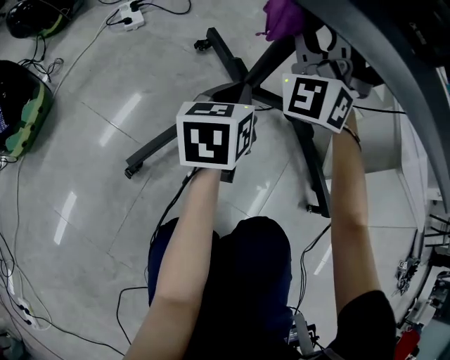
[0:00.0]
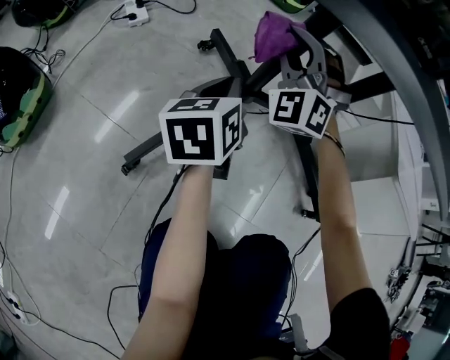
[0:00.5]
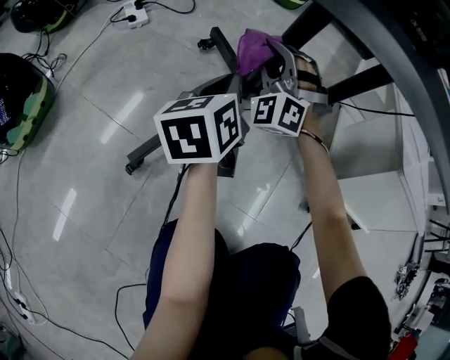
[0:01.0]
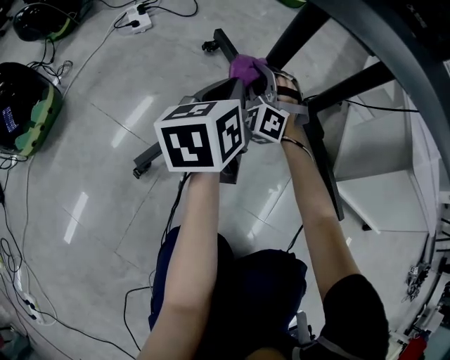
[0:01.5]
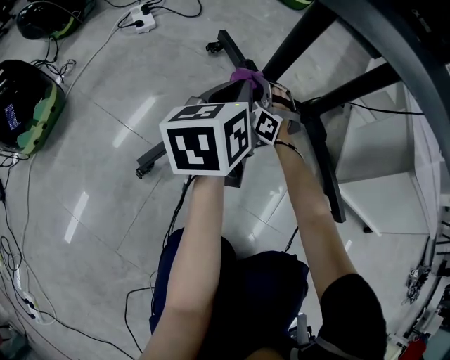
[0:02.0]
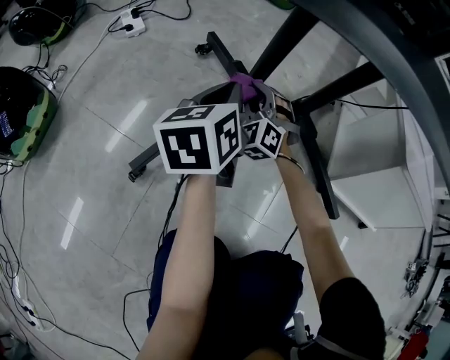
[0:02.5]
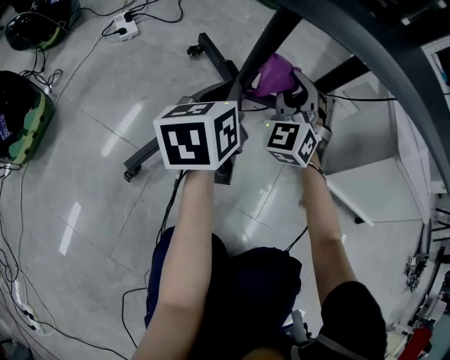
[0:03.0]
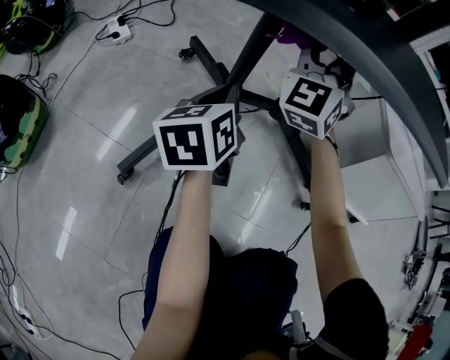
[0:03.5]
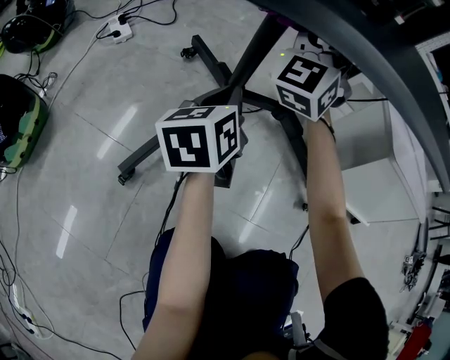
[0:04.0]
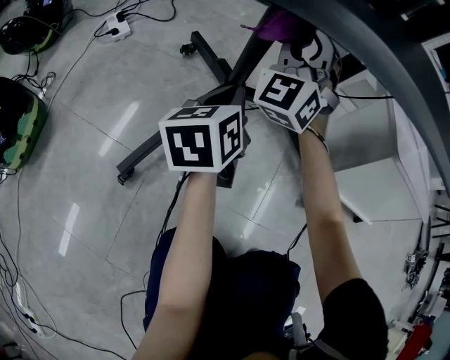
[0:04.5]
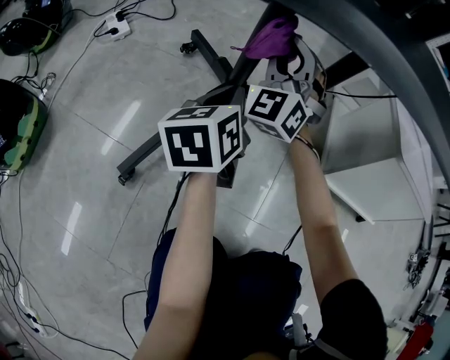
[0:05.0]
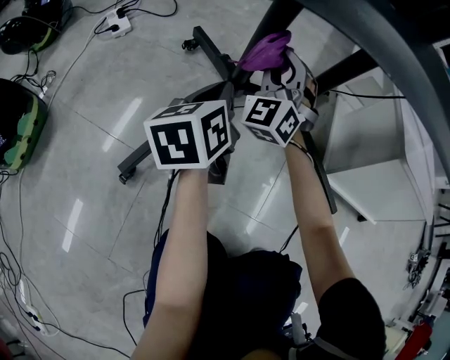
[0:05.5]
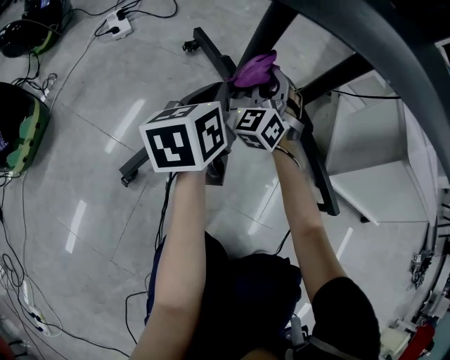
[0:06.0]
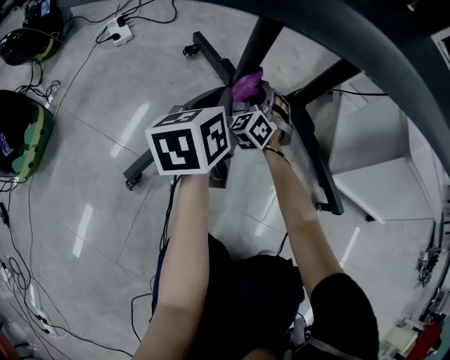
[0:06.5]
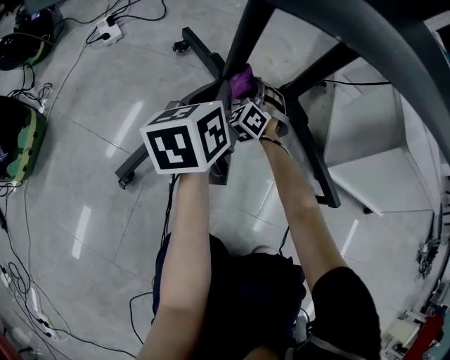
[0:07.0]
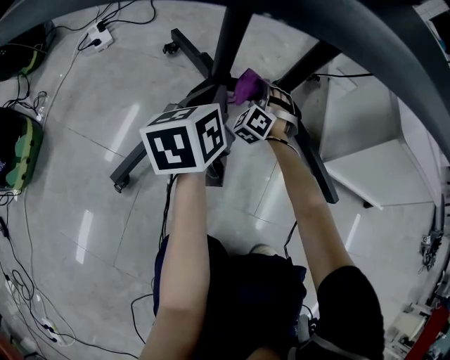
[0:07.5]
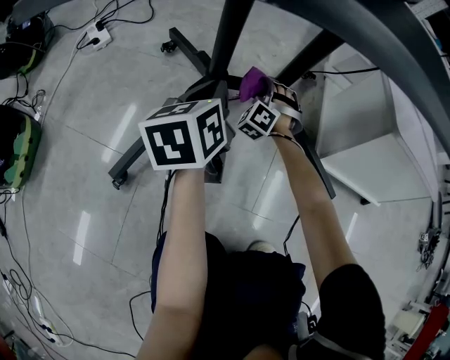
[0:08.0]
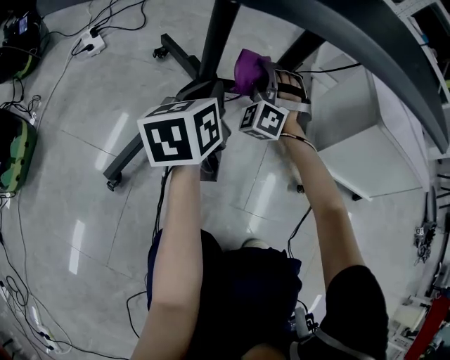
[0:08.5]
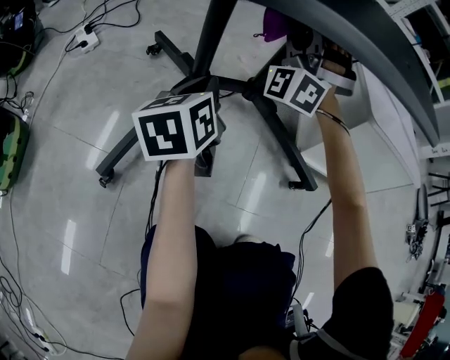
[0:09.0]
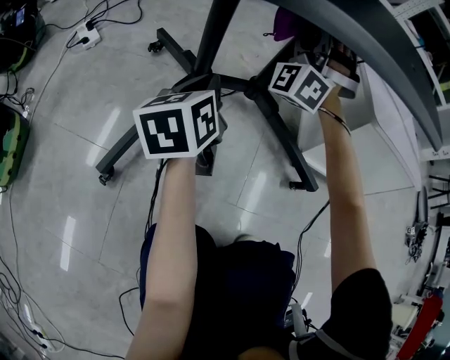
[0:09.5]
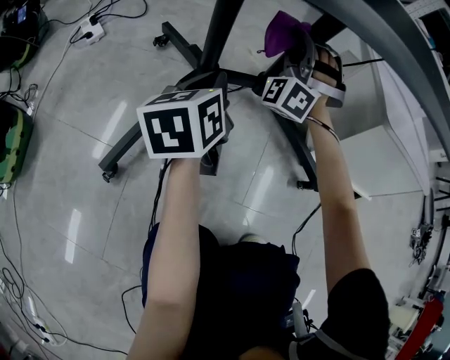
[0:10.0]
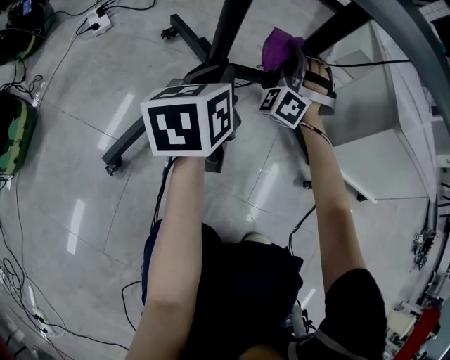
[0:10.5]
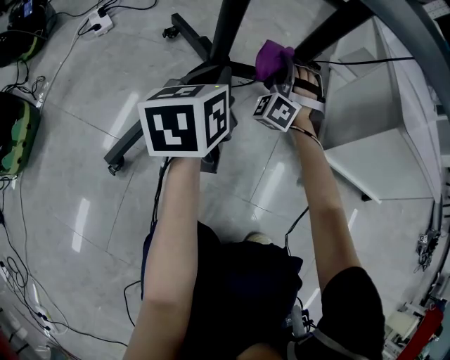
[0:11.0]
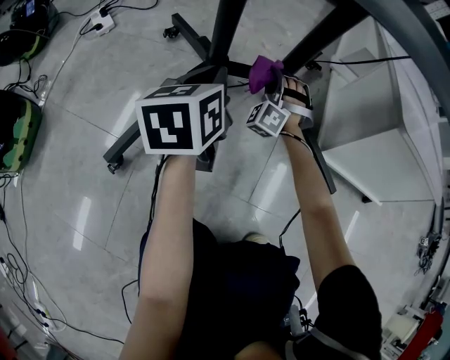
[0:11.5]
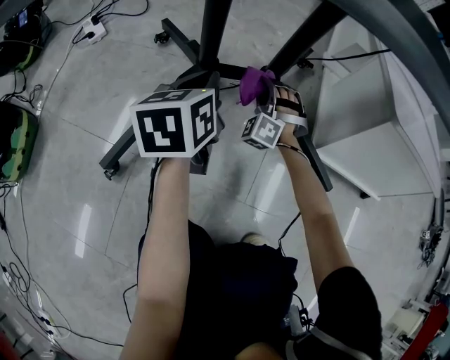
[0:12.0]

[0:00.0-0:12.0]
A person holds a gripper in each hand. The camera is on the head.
0:00.0 to 0:02.0: The right gripper moves downward, roughly 30 cm, and angles its fingers downward, by about 30 degrees.
0:02.0 to 0:04.0: The right gripper shifts approximately 35 cm upward, and angles its fingers upward, by some 40 degrees.
0:04.0 to 0:06.0: The right gripper moves downward, approximately 25 cm, and swivels roughly 30 degrees.
0:06.0 to 0:08.0: The right gripper shifts some 15 cm downward and to the right, and swivels some 30 degrees. The left gripper goes some 5 cm to the right.
0:08.0 to 0:10.0: The right gripper moves upward, some 25 cm, and angles its fingers upward, by some 30 degrees.
0:10.0 to 0:12.0: The right gripper moves downward, some 20 cm, and swivels about 20 degrees.

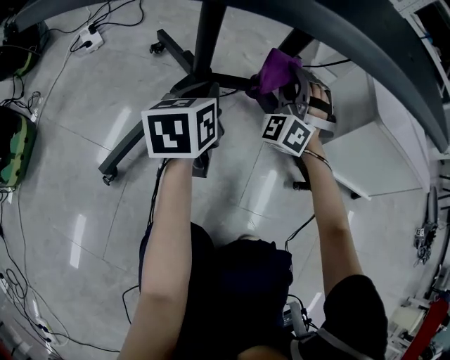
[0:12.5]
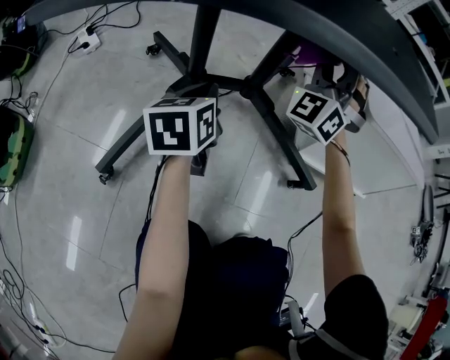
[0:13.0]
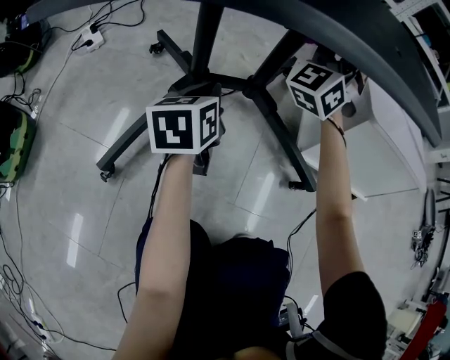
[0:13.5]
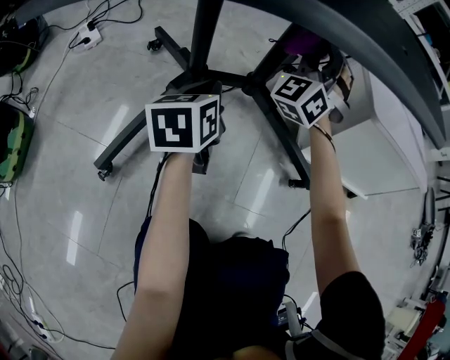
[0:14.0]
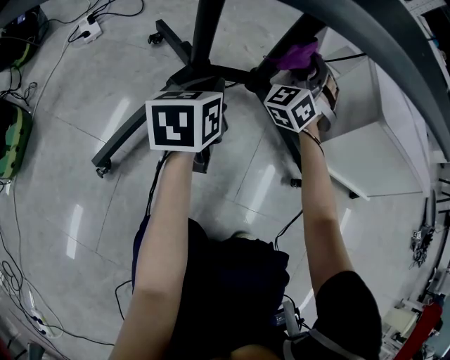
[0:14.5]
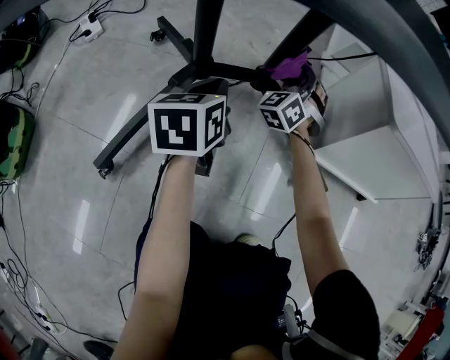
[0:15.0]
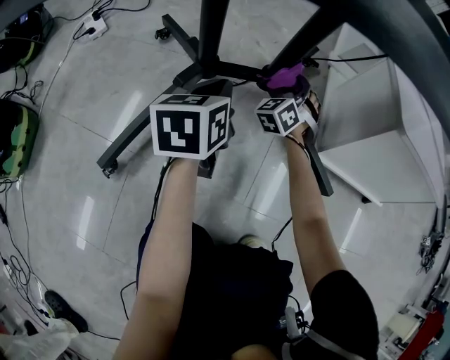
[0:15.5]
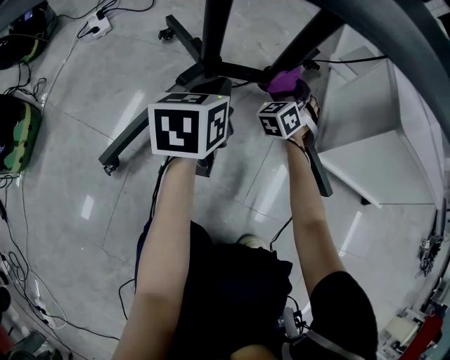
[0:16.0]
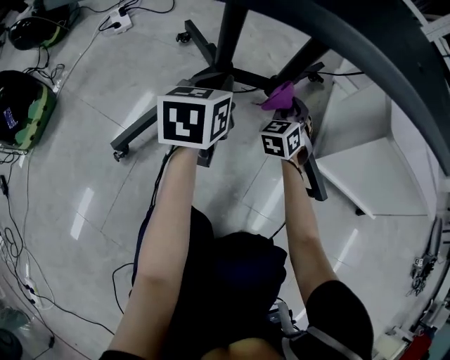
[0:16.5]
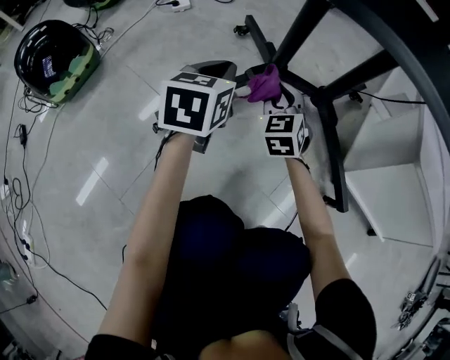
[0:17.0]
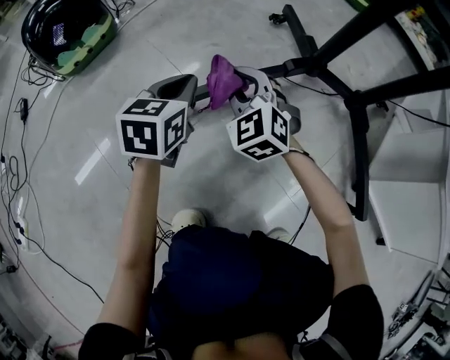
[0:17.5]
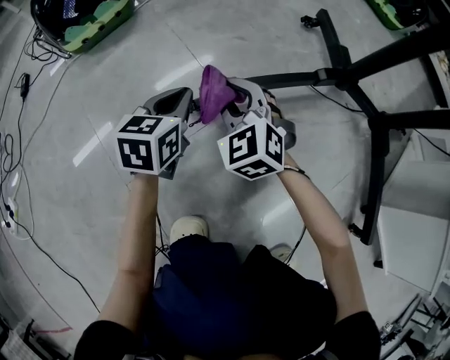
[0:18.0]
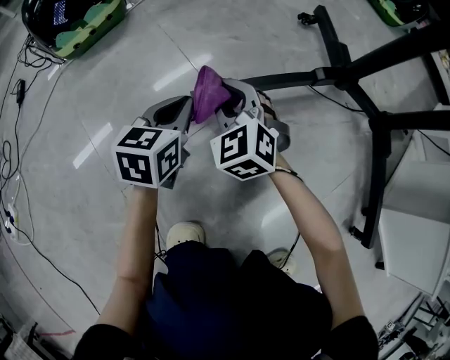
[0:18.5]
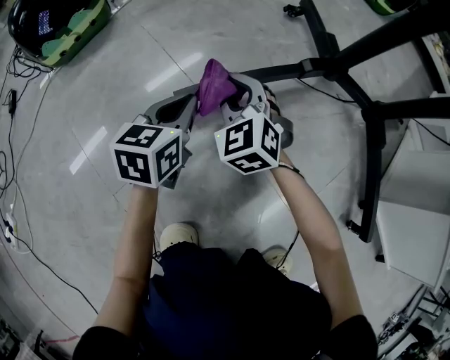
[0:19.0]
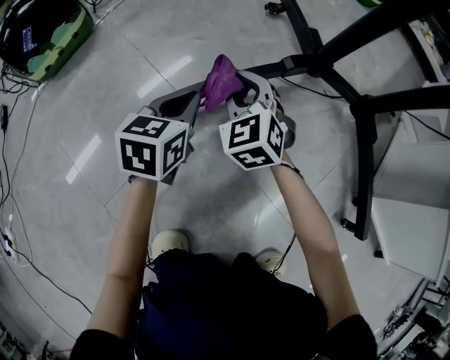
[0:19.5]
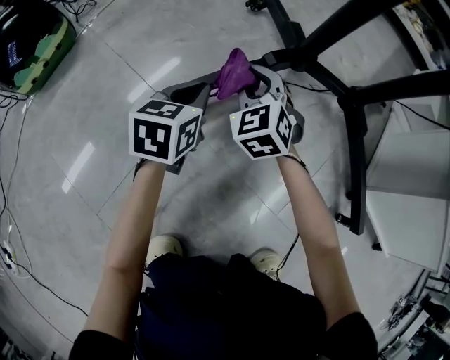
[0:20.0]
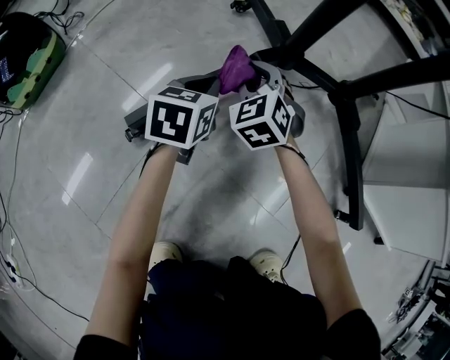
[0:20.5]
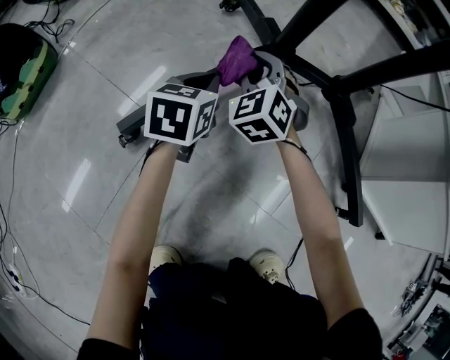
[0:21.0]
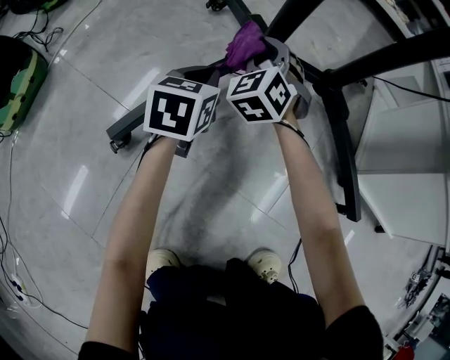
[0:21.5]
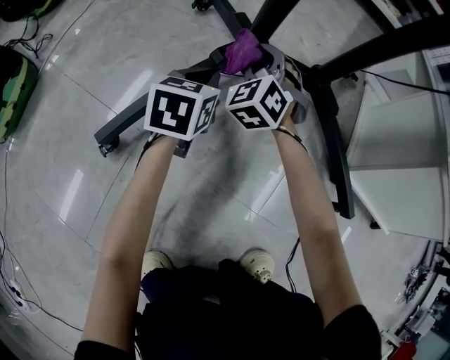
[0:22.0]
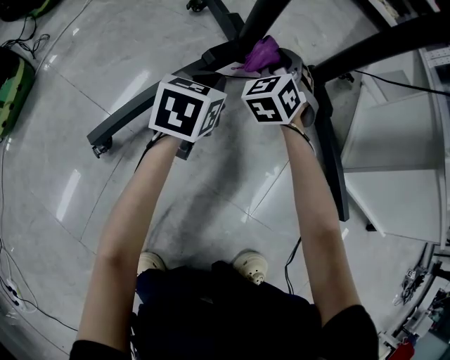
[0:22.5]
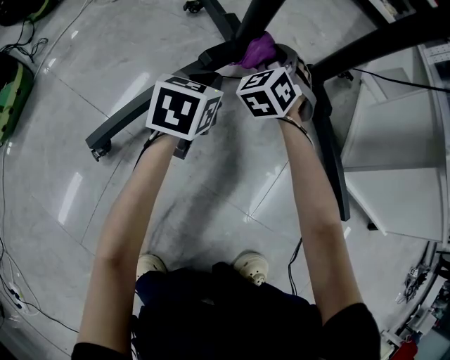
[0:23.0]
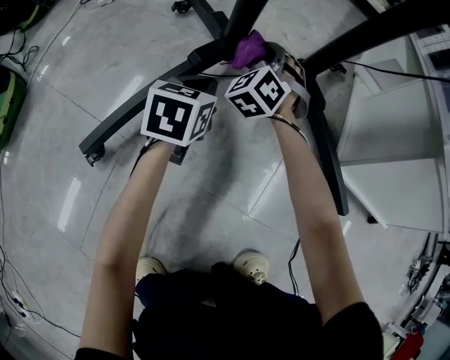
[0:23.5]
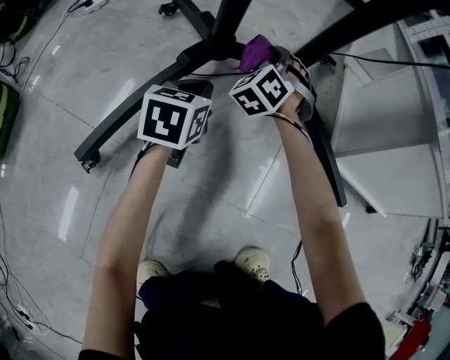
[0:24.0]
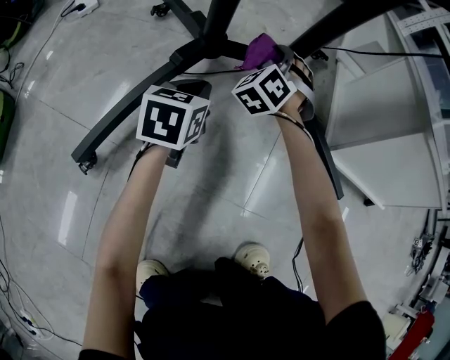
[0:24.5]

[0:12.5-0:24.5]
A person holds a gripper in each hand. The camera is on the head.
0:12.5 to 0:14.5: The right gripper moves forward, approximately 5 cm, reaches approximately 15 cm upward, then returns, and changes its angle by about 20 degrees.
0:14.5 to 0:16.5: The right gripper moves downward and backward, about 15 cm, and swivels approximately 30 degrees.
0:16.5 to 0:18.5: The right gripper changes place by approximately 50 cm, and rotates about 60 degrees. Meanwhile the left gripper ends up some 40 cm from where it was, and turns by about 20 degrees.
0:18.5 to 0:20.5: The grippers both shift to the right and forward by some 25 cm. The right gripper turns by approximately 30 degrees.
0:20.5 to 0:22.5: The right gripper moves to the right and forward, about 20 cm, and changes its angle by roughly 20 degrees, while the left gripper travels to the right and forward by approximately 10 cm.
0:22.5 to 0:24.5: The right gripper heads to the right, covering about 10 cm.

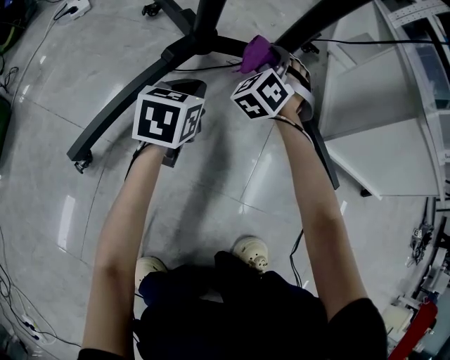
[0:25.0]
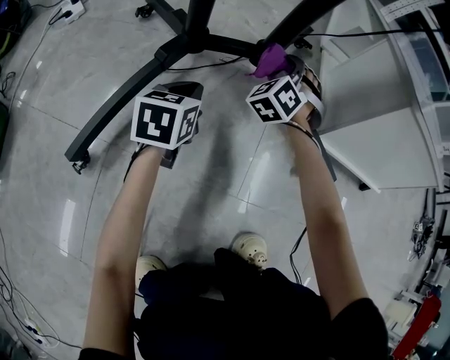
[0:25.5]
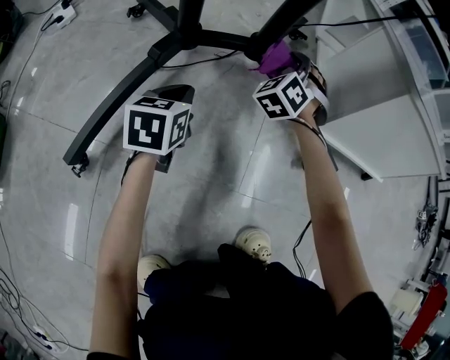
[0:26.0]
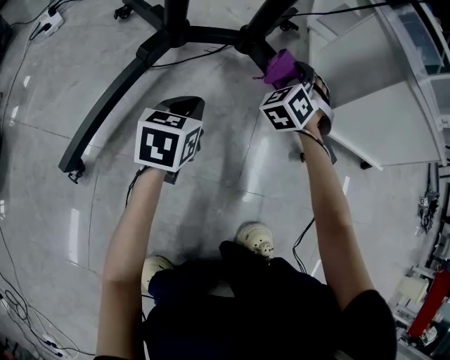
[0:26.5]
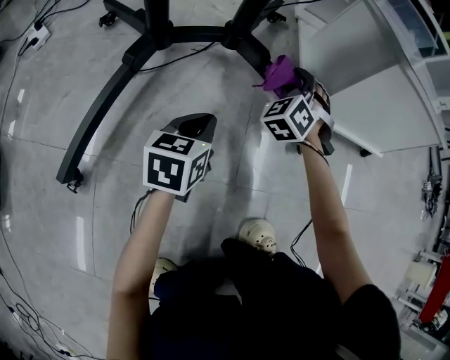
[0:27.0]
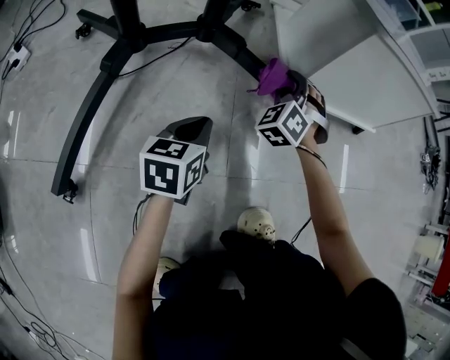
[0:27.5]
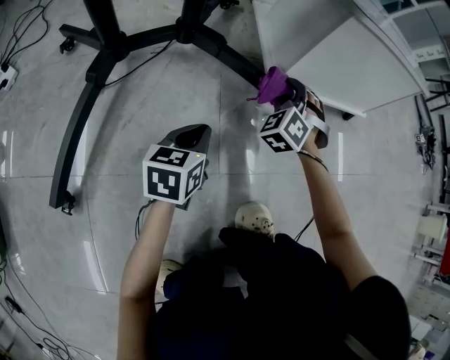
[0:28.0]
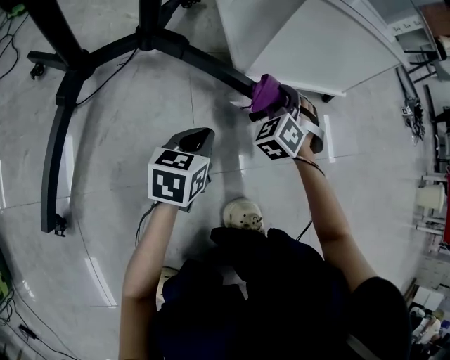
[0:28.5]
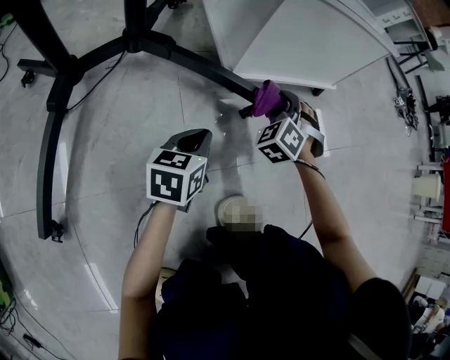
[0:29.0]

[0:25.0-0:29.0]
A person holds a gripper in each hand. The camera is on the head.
0:25.0 to 0:27.0: The two grippers go roughly 15 cm to the right.
0:27.0 to 0:29.0: Both grippers travel together to the right, roughly 20 cm. The left gripper turns by some 20 degrees.
